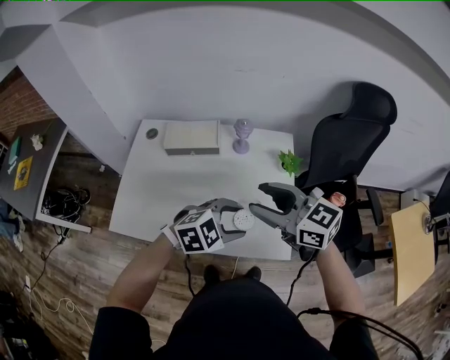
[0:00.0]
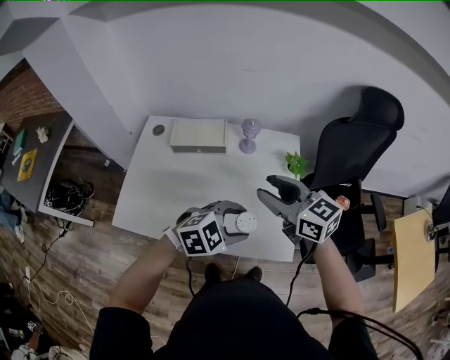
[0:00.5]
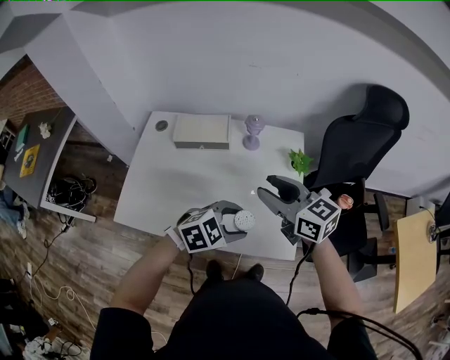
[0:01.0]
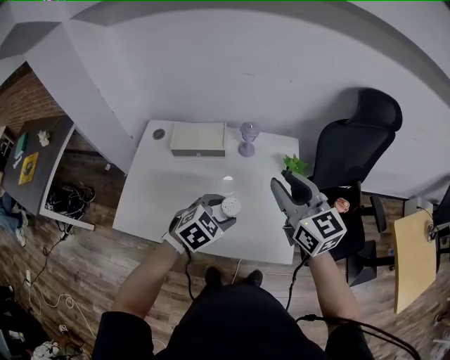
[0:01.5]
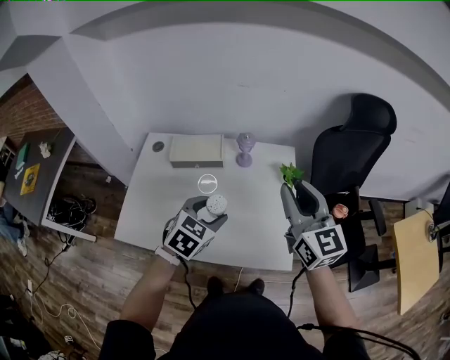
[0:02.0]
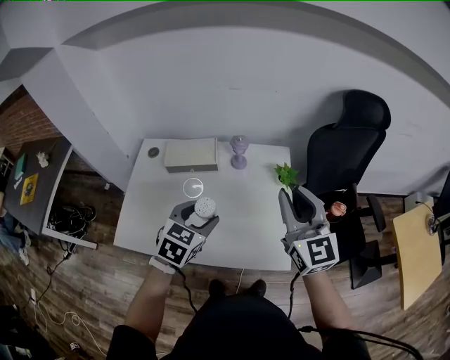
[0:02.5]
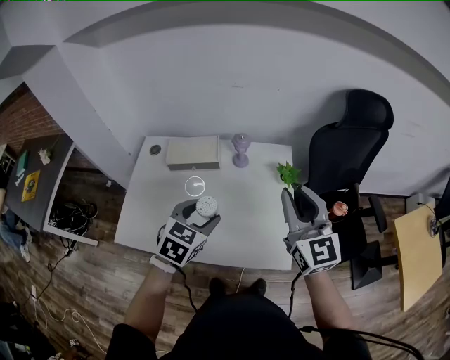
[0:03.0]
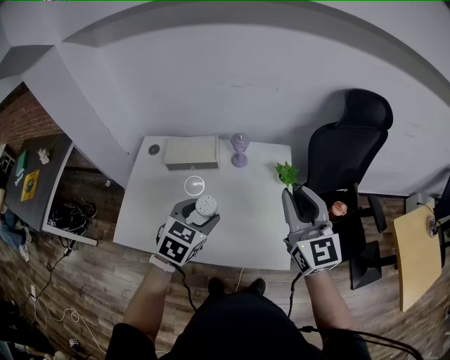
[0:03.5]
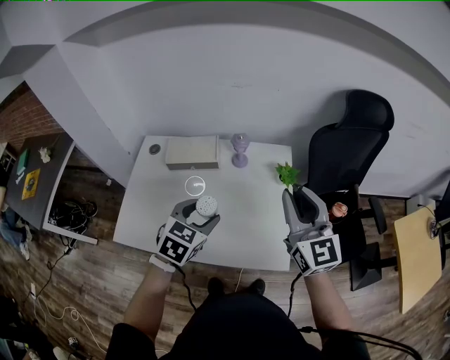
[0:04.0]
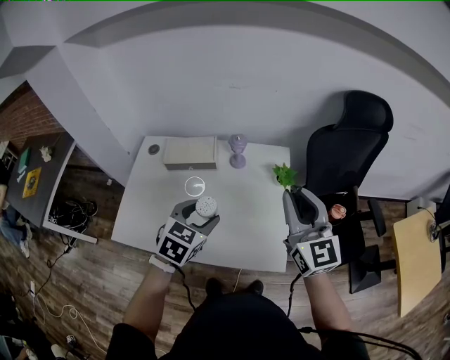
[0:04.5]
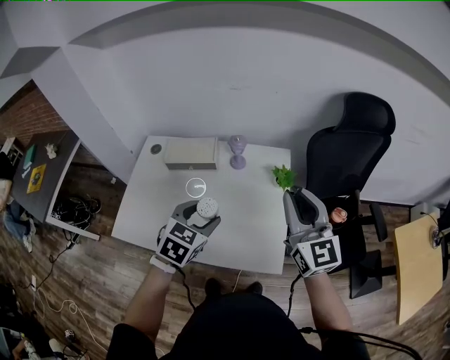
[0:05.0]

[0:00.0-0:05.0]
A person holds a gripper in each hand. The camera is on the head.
0:00.0 to 0:02.5: The left gripper shifts by some 10 cm, and rotates some 40 degrees; the right gripper ends up roughly 10 cm from where it was, changes its angle by about 40 degrees, and closes up.
0:02.5 to 0:05.0: The right gripper changes place by approximately 5 cm.

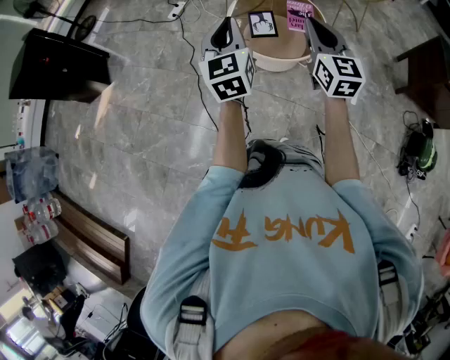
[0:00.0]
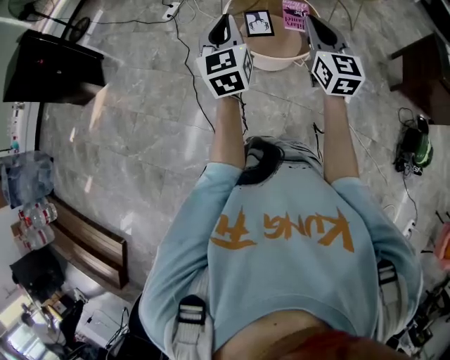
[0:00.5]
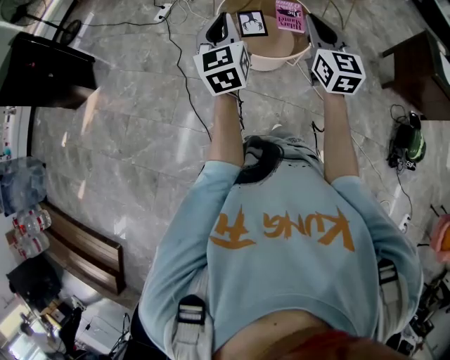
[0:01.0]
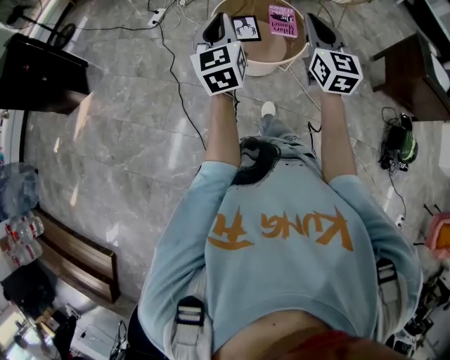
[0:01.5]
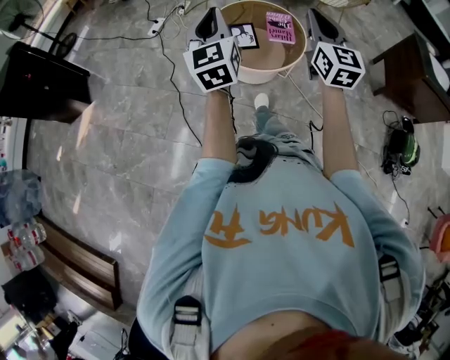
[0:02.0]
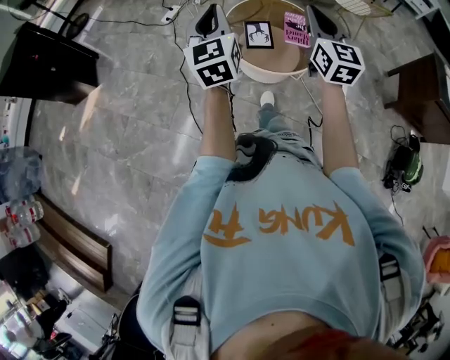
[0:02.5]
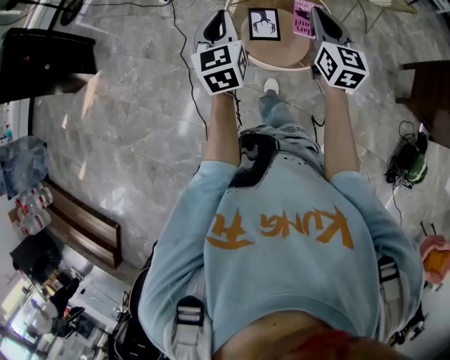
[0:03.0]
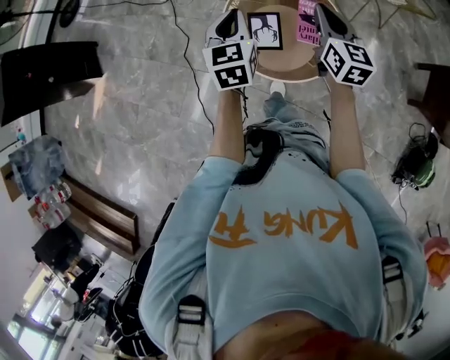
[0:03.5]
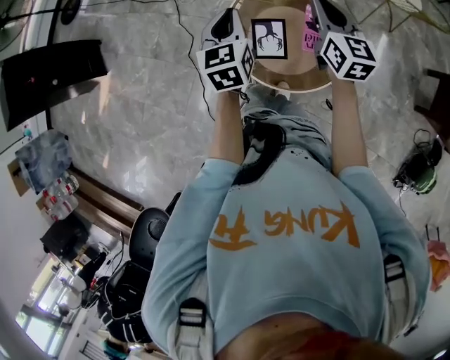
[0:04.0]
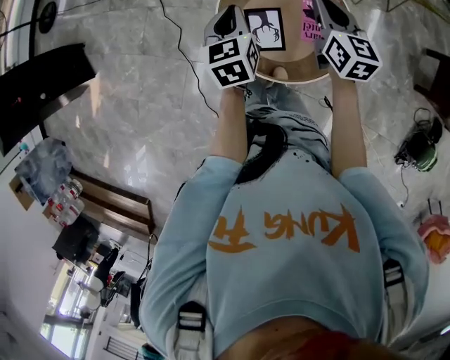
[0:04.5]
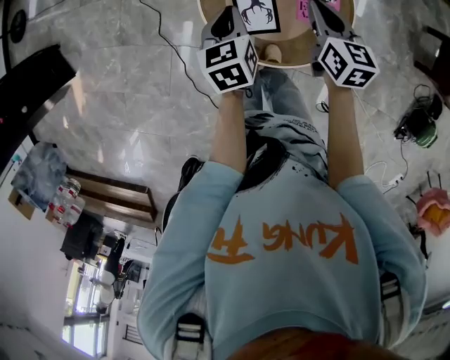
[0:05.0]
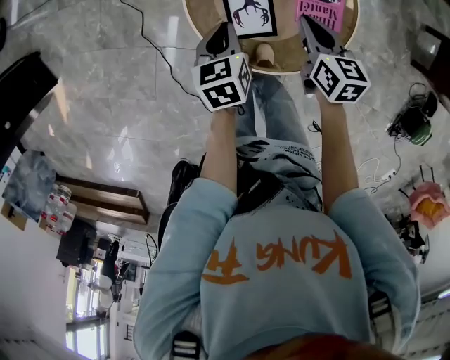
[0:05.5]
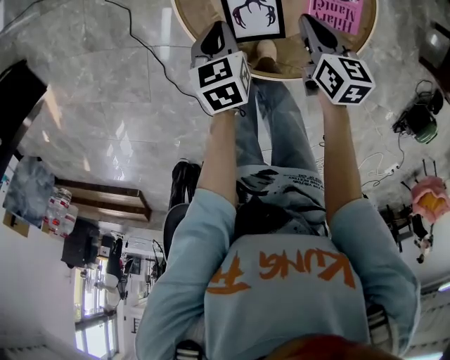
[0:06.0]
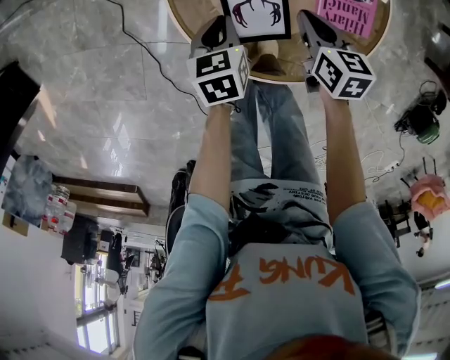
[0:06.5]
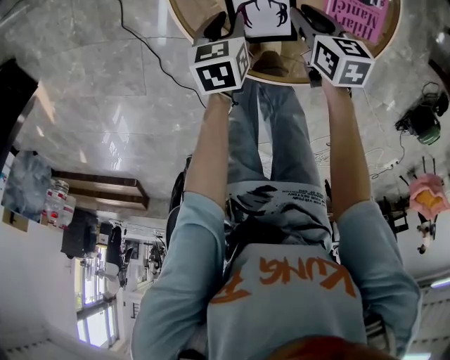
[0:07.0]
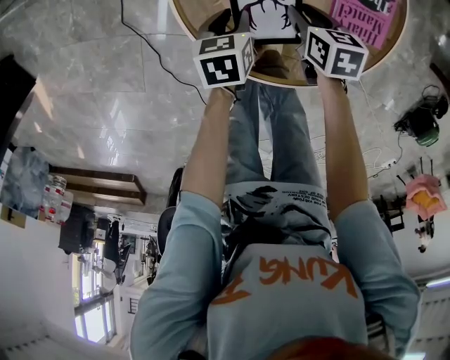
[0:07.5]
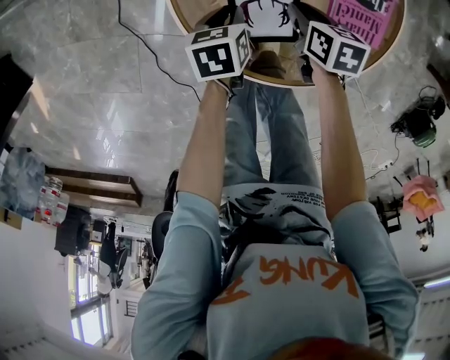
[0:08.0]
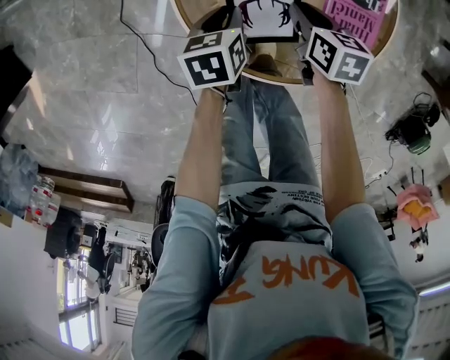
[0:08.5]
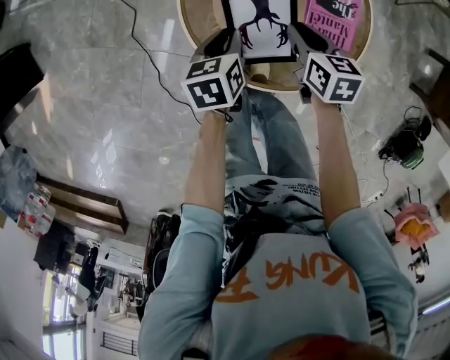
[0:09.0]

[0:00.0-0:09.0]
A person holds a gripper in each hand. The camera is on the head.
0:00.0 to 0:02.0: The left gripper changes place by about 5 cm. Meanwhile the right gripper travels upward by about 5 cm.
0:02.0 to 0:04.5: Both grippers are carried forward, roughly 50 cm. Both grippers move downward, some 25 cm. The right gripper swivels about 30 degrees. Meanwhile the left gripper tilts its fingers some 40 degrees downward.
0:04.5 to 0:07.0: Both grippers move downward, approximately 40 cm. The right gripper tilts its fingers some 30 degrees downward, and opens up. Meanwhile the left gripper rotates roughly 30 degrees, and opens.
0:07.0 to 0:09.0: The two grippers go about 15 cm upward.

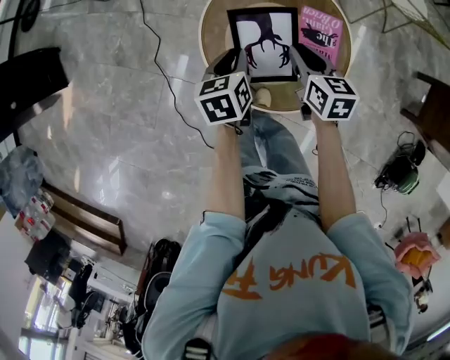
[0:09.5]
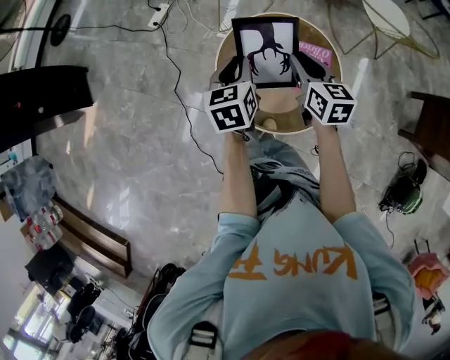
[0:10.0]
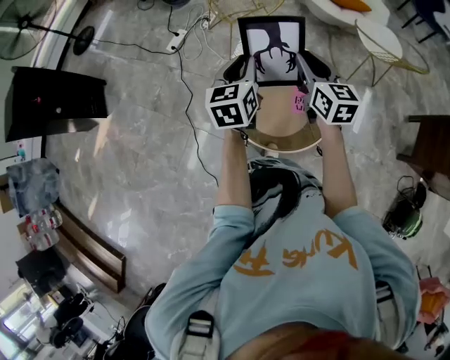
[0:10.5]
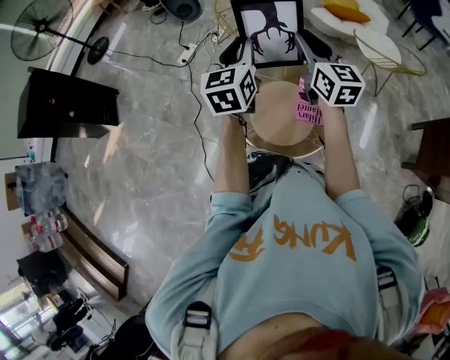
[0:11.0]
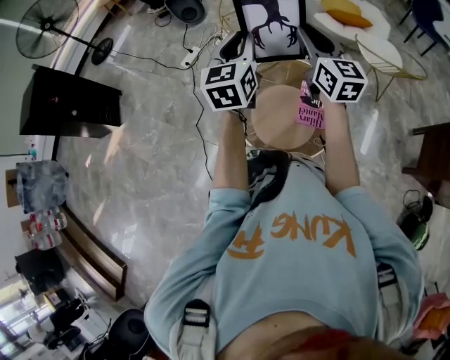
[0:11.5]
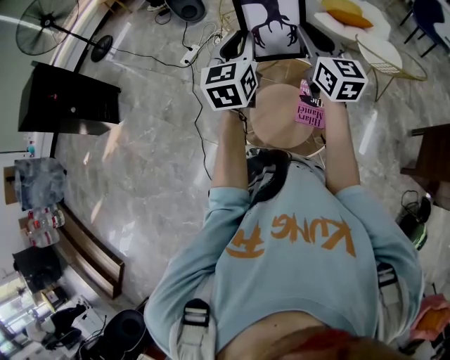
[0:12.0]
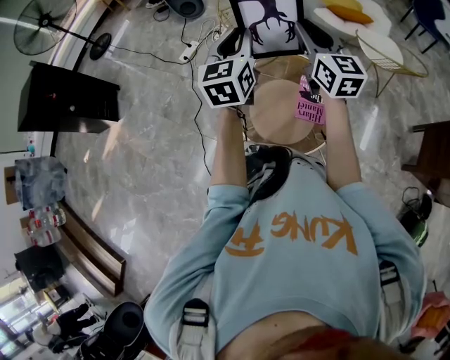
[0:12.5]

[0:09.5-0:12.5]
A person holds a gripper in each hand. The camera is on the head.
0:09.5 to 0:11.0: Both grippers travel together upward, some 40 cm. The left gripper angles its fingers upward, by roughly 30 degrees; the right gripper points its fingers roughly 30 degrees further upward.
0:11.0 to 0:12.5: The grippers move only a little.

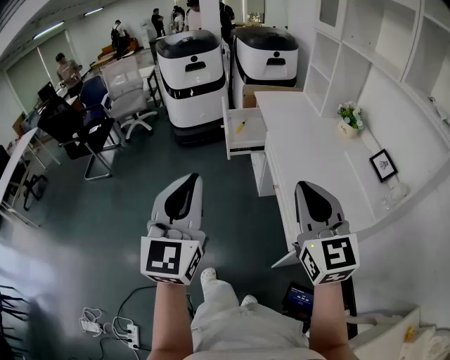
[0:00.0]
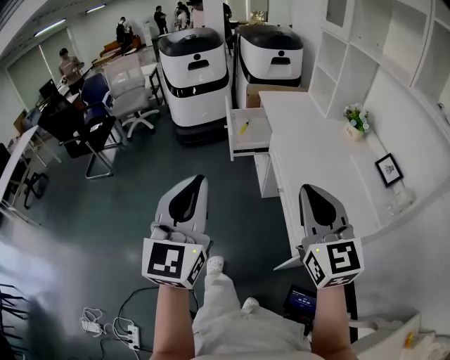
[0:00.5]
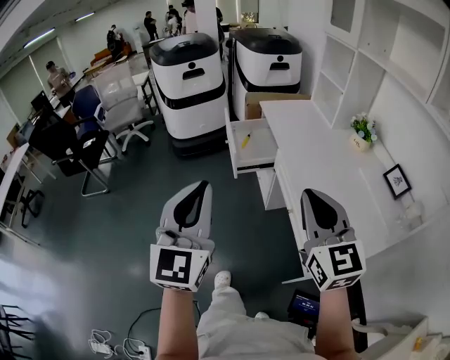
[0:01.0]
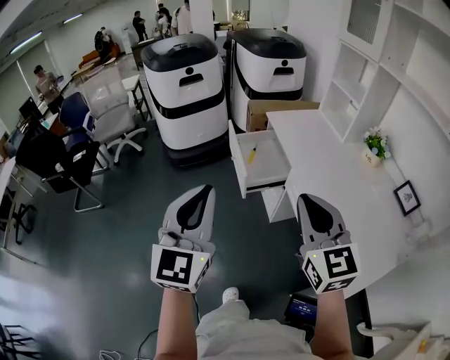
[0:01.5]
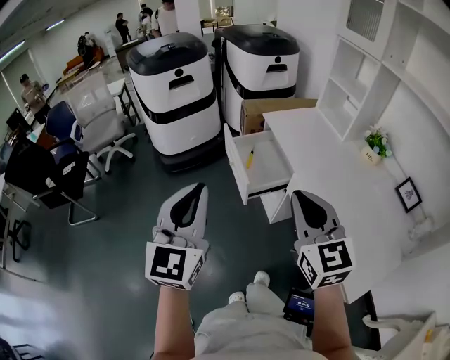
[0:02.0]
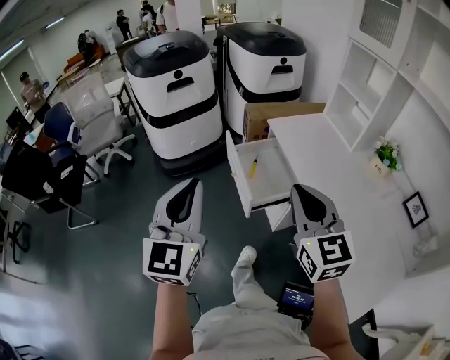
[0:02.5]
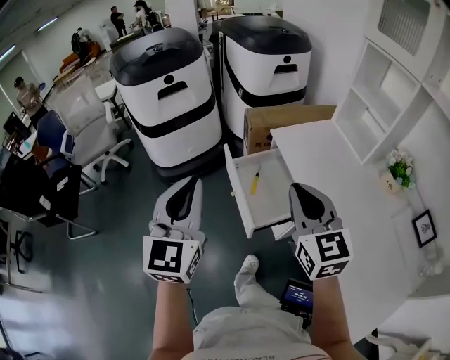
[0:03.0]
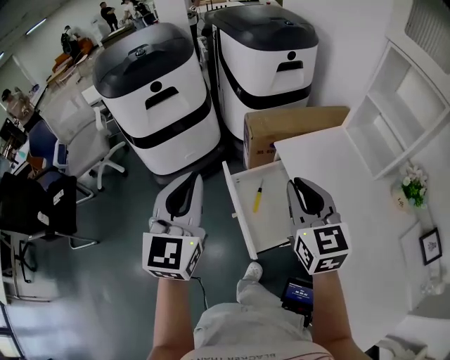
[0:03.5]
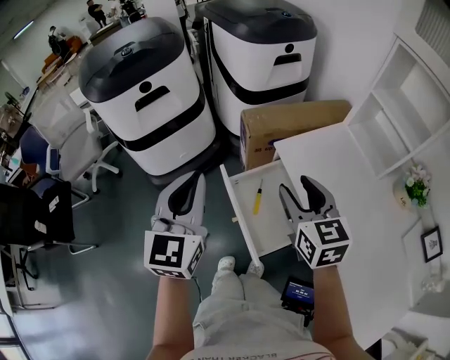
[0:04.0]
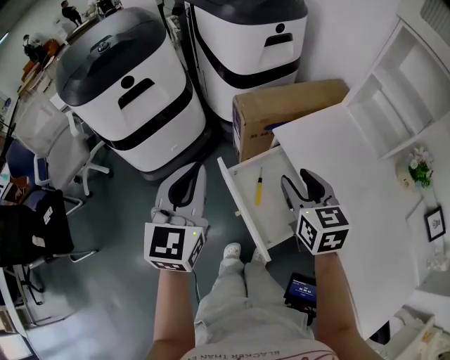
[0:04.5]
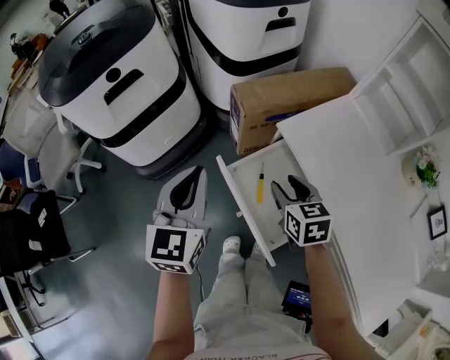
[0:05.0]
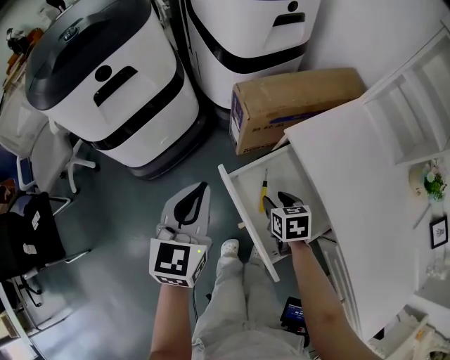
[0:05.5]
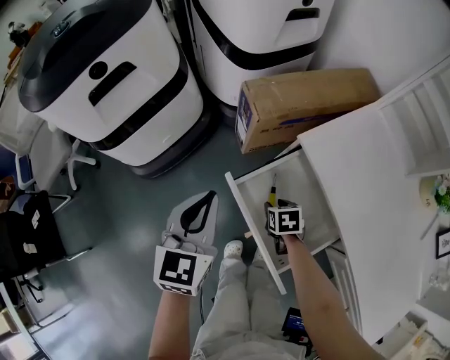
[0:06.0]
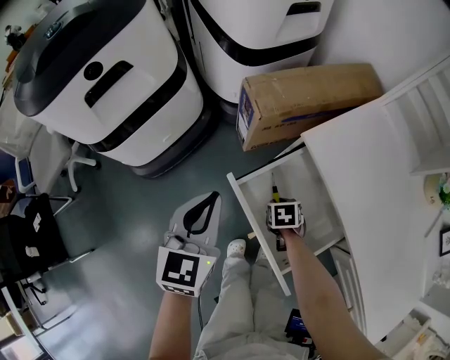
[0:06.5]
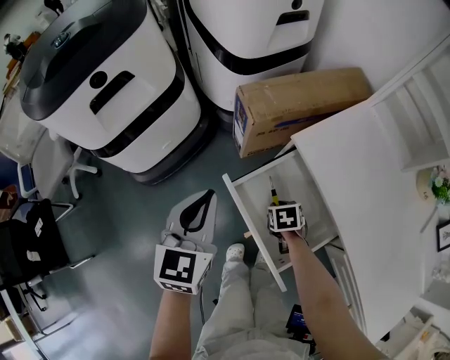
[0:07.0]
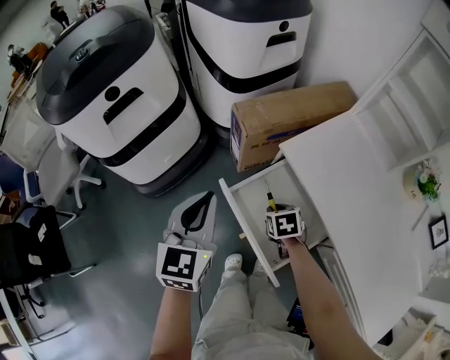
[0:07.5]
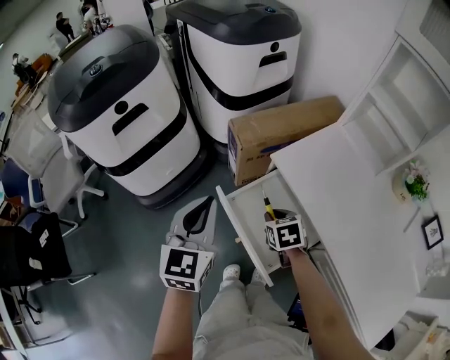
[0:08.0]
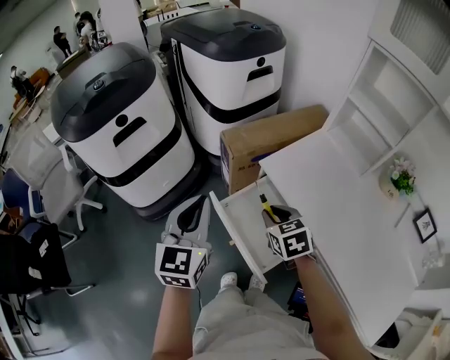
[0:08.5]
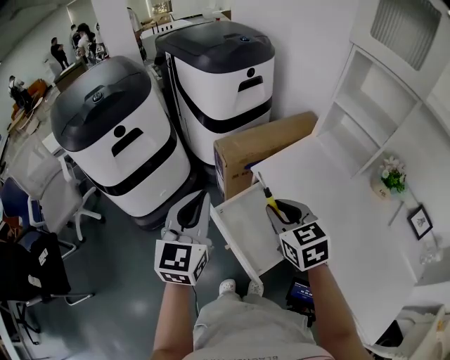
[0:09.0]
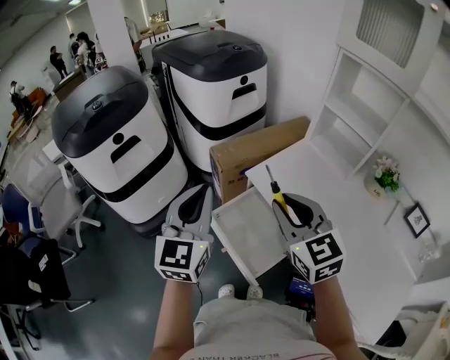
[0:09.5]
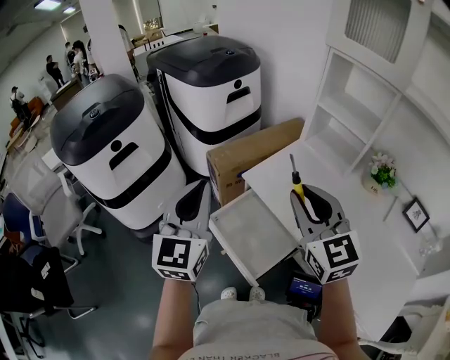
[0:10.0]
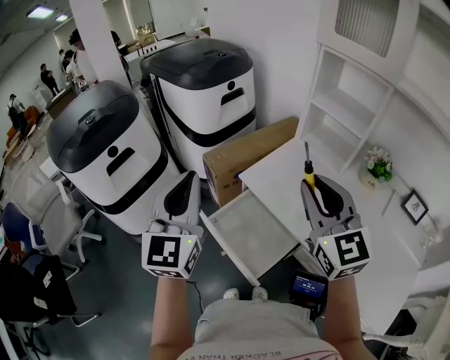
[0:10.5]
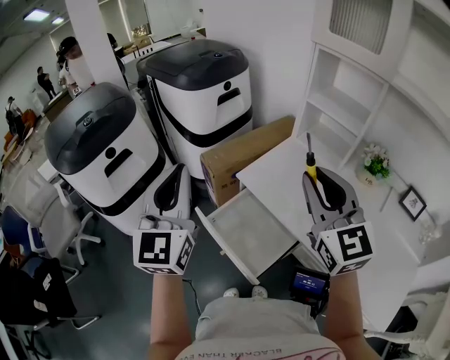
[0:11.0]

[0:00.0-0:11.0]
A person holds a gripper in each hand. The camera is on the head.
0:00.0 to 0:02.0: The two grippers go some 35 cm forward and to the left.
0:02.0 to 0:03.5: Both grippers move forward, some 35 cm.
0:03.5 to 0:05.5: The left gripper moves downward and forward, approximately 20 cm, and rotates about 20 degrees, while the right gripper heads downward, covering about 35 cm, points its fingers about 40 degrees further downward, and opens.
0:05.5 to 0:07.5: The left gripper travels downward and back again, about 5 cm each way; the right gripper goes downward and returns, some 10 cm each way, and closes its fingers.
0:07.5 to 0:09.0: The right gripper is displaced upward by some 30 cm, and tips its fingers upward by roughly 30 degrees. The left gripper moves upward, some 10 cm.
0:09.0 to 0:11.0: The right gripper is displaced upward and to the right by some 20 cm, and angles its fingers upward, by some 30 degrees, while the left gripper shifts approximately 10 cm upward.
